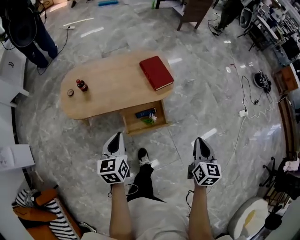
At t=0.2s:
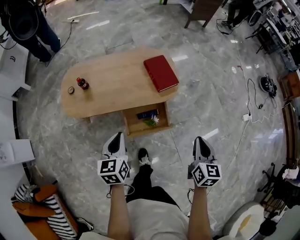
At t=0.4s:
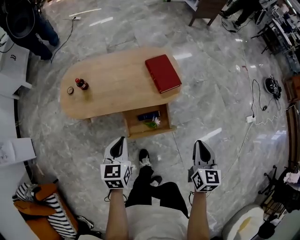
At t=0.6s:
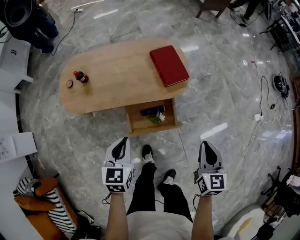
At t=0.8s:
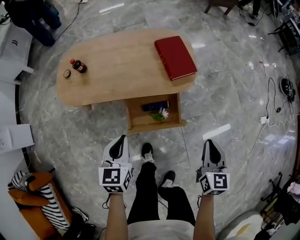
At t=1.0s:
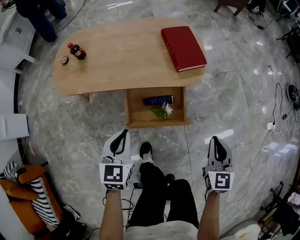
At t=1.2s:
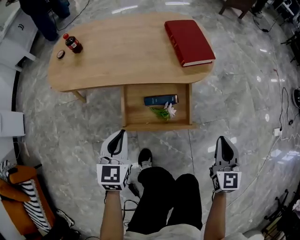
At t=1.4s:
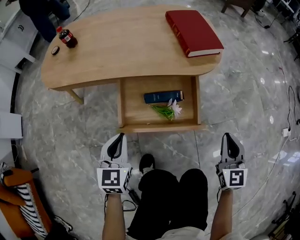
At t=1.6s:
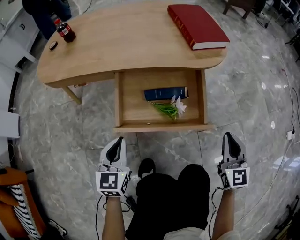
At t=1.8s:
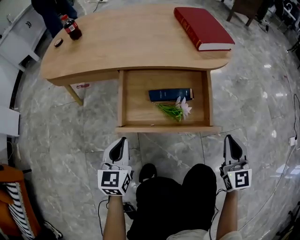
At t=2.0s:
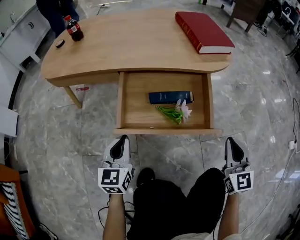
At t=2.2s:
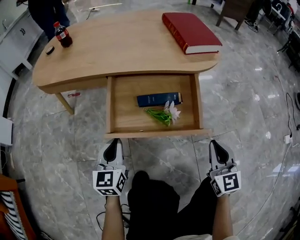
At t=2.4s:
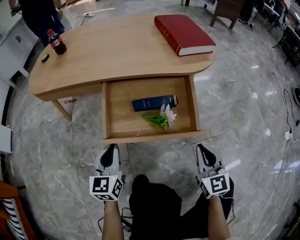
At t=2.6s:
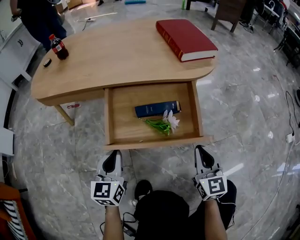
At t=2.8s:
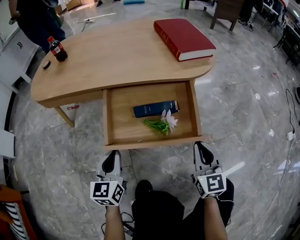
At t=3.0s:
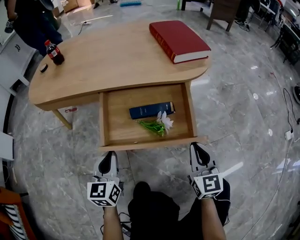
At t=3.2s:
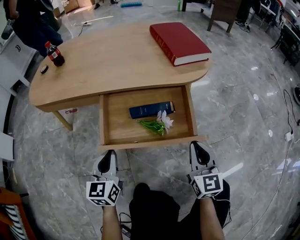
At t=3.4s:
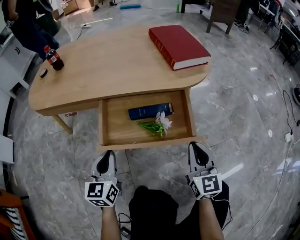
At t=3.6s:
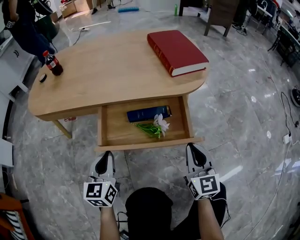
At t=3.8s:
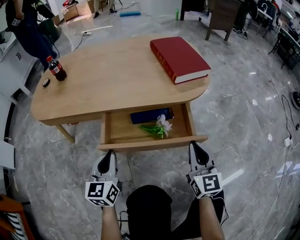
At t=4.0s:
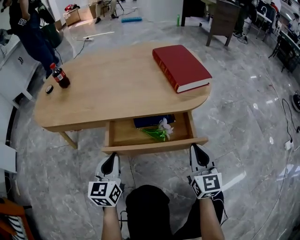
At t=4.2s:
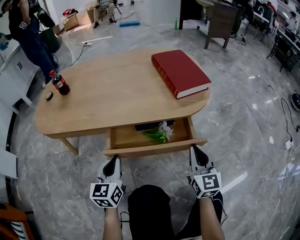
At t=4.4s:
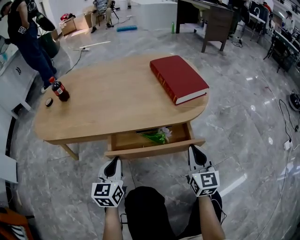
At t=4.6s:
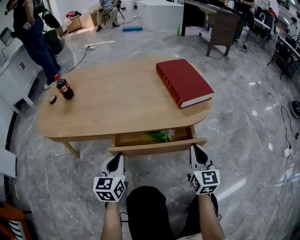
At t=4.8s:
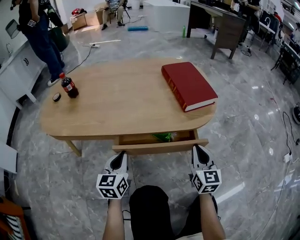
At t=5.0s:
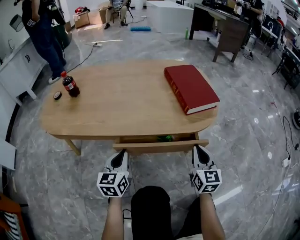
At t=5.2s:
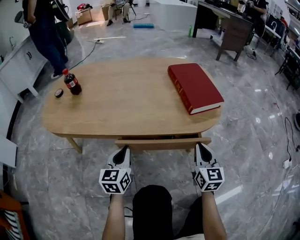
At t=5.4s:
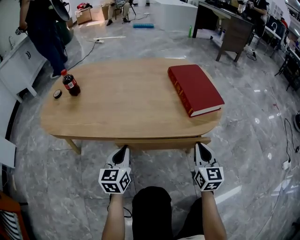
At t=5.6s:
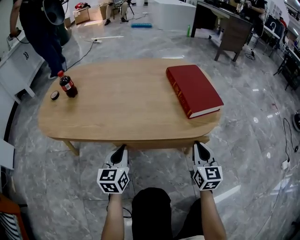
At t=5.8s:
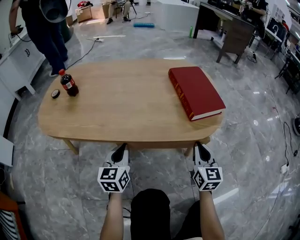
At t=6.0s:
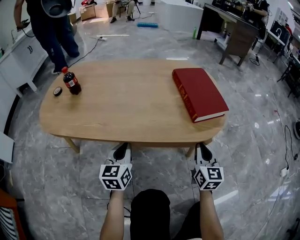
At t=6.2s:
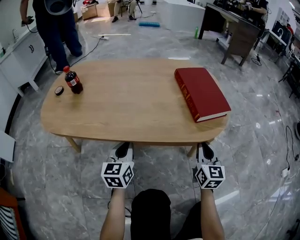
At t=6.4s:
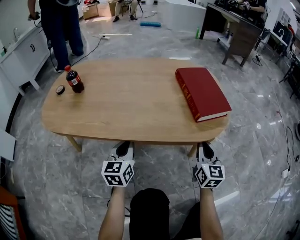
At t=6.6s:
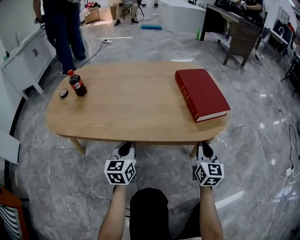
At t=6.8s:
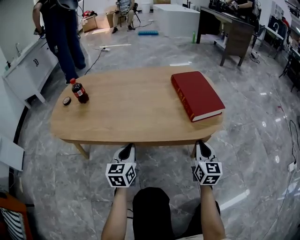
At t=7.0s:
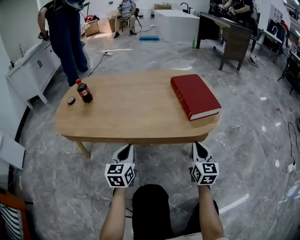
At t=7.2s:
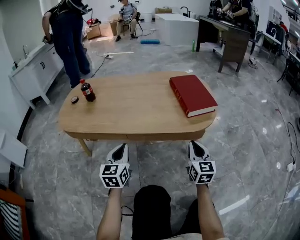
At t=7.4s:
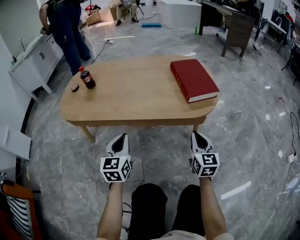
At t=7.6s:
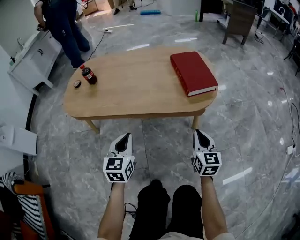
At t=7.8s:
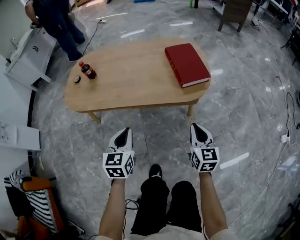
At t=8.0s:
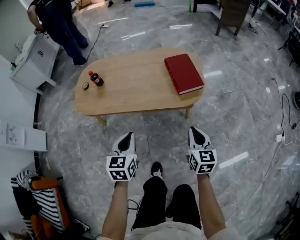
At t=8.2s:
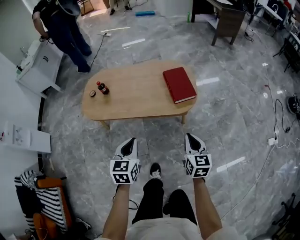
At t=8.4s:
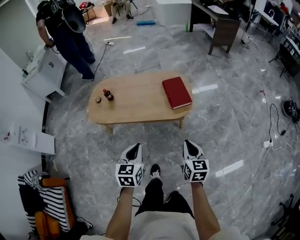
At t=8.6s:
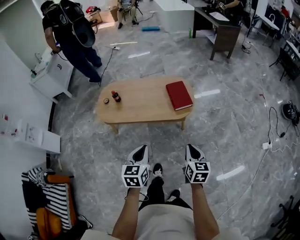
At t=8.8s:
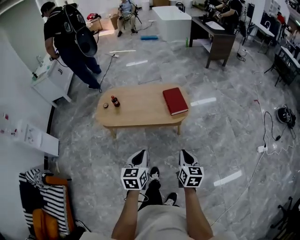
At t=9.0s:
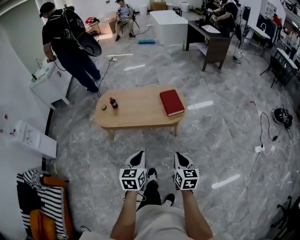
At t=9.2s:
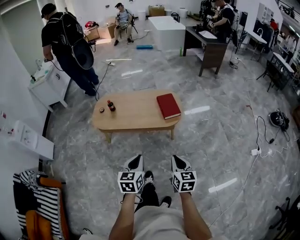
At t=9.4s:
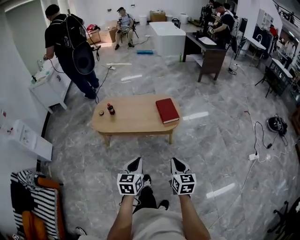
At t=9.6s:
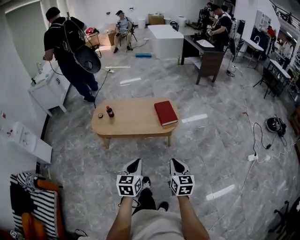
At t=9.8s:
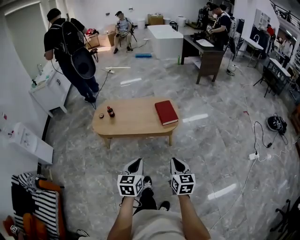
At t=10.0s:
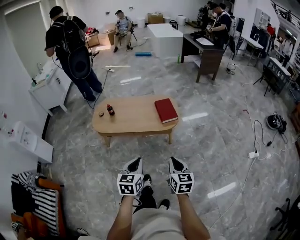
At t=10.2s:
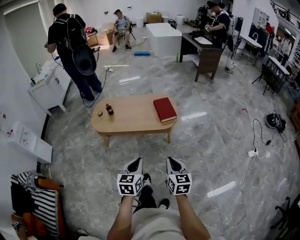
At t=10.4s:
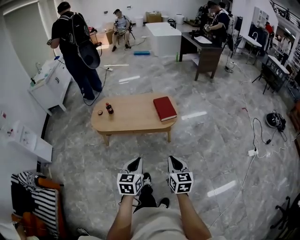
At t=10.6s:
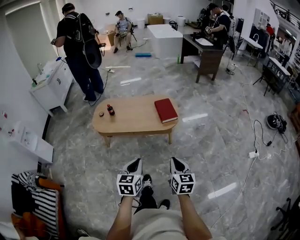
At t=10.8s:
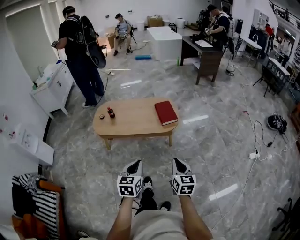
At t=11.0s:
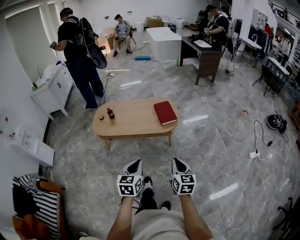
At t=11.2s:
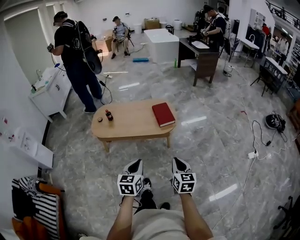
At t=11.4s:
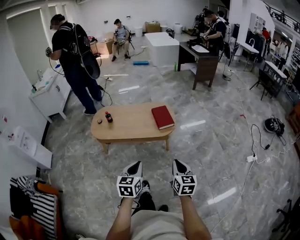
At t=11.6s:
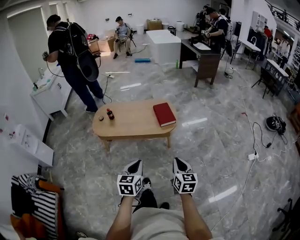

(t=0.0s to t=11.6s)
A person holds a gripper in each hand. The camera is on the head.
t=0.0s - t=1.4s: The grippers both shift downward by some 40 cm. The right gripper turns by some 30 degrees; the left gripper changes its angle by approximately 20 degrees.
t=1.4s - t=2.8s: The left gripper heads downward, covering about 10 cm. The right gripper heads downward and to the left, covering approximately 15 cm.
t=2.8s - t=4.4s: The left gripper moves forward, approximately 10 cm, while the right gripper moves forward and upward, some 10 cm.
t=4.4s - t=5.8s: Both grippers move forward, approximately 10 cm.
t=5.8s - t=7.2s: The left gripper moves backward and upward, approximately 10 cm. The right gripper ends up some 5 cm from where it was.
t=7.2s - t=8.8s: Both grippers travel together upward and backward, roughly 60 cm. The right gripper rotates roughly 20 degrees.
t=8.8s - t=10.2s: Both grippers move backward, about 10 cm.
t=10.2s - t=11.6s: The right gripper is displaced to the right by about 5 cm.

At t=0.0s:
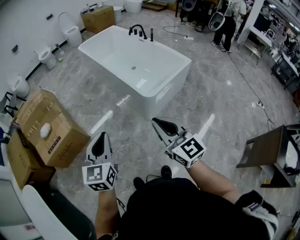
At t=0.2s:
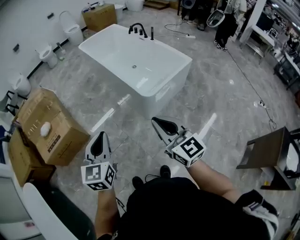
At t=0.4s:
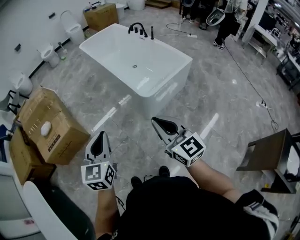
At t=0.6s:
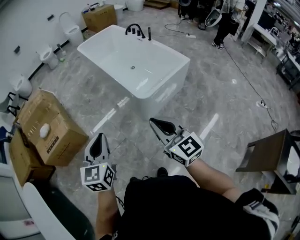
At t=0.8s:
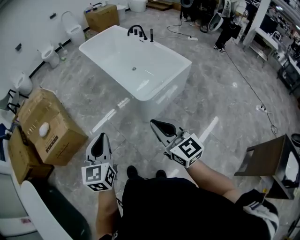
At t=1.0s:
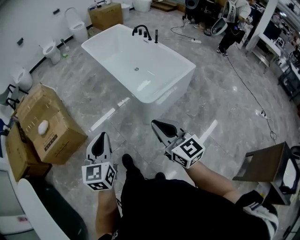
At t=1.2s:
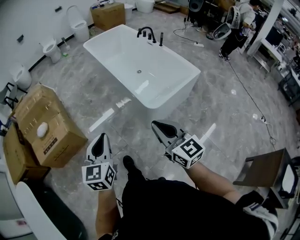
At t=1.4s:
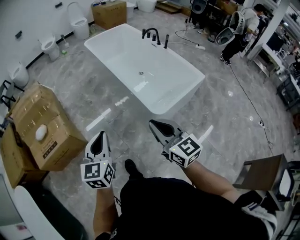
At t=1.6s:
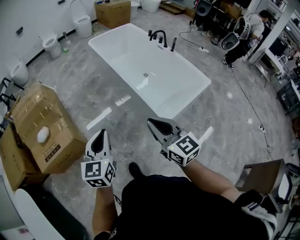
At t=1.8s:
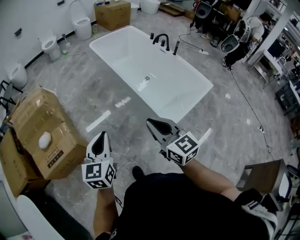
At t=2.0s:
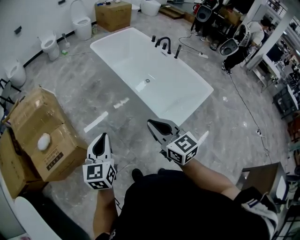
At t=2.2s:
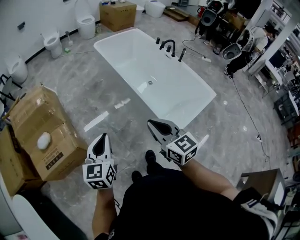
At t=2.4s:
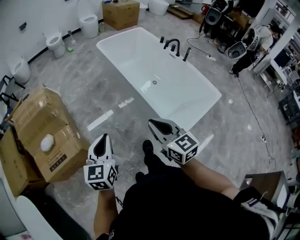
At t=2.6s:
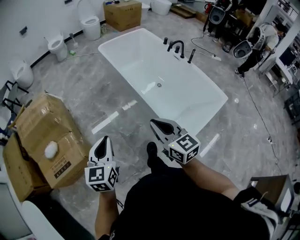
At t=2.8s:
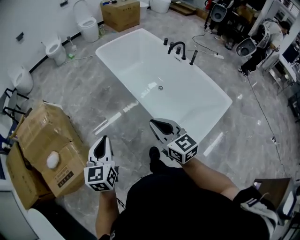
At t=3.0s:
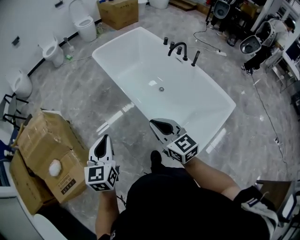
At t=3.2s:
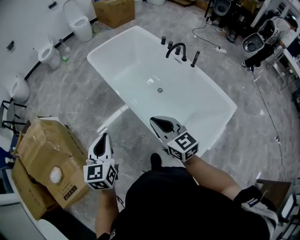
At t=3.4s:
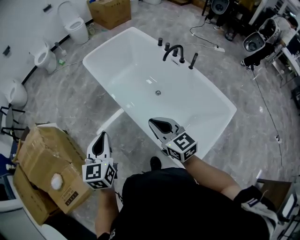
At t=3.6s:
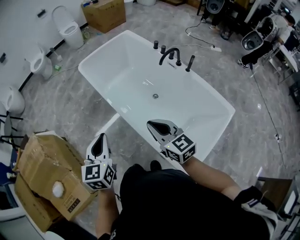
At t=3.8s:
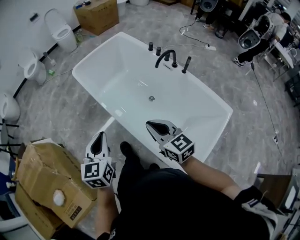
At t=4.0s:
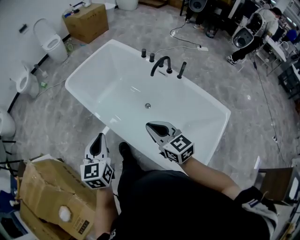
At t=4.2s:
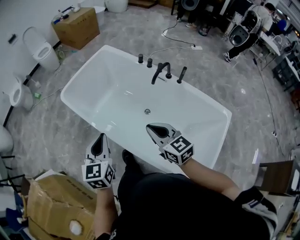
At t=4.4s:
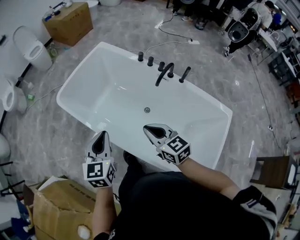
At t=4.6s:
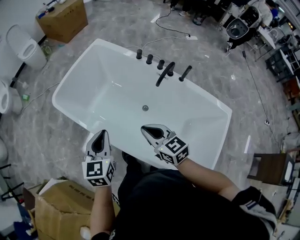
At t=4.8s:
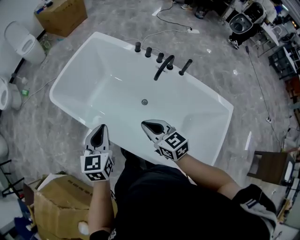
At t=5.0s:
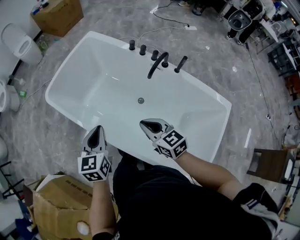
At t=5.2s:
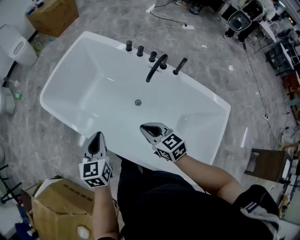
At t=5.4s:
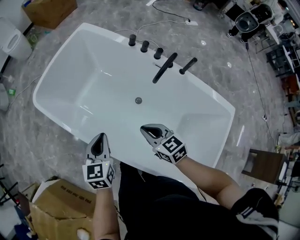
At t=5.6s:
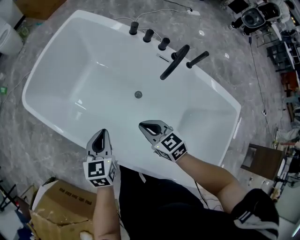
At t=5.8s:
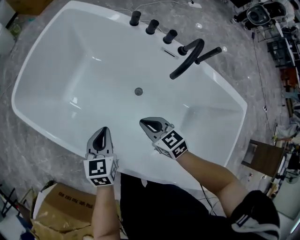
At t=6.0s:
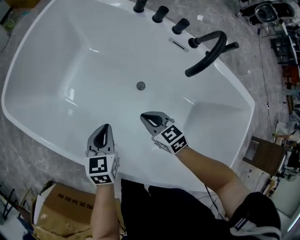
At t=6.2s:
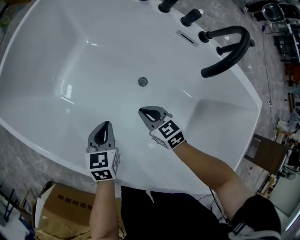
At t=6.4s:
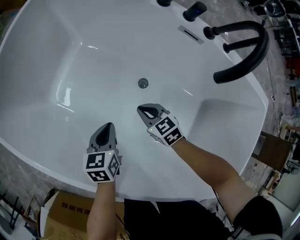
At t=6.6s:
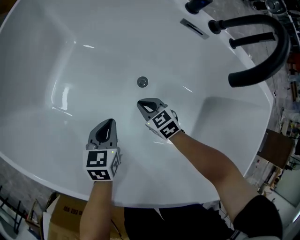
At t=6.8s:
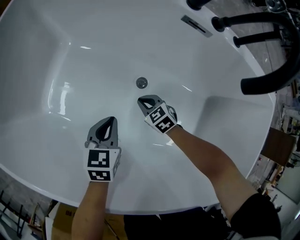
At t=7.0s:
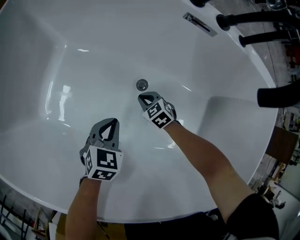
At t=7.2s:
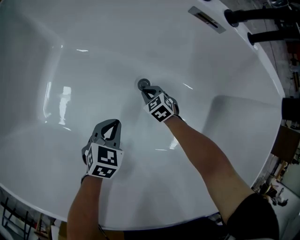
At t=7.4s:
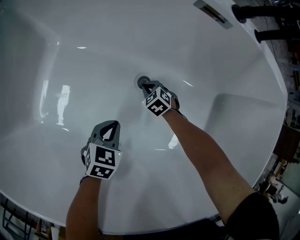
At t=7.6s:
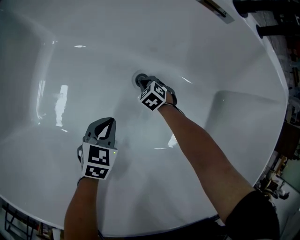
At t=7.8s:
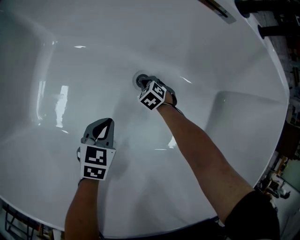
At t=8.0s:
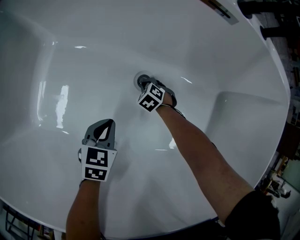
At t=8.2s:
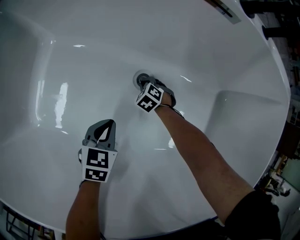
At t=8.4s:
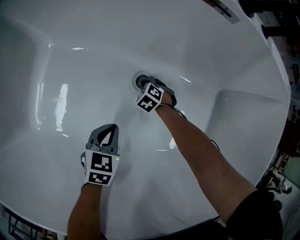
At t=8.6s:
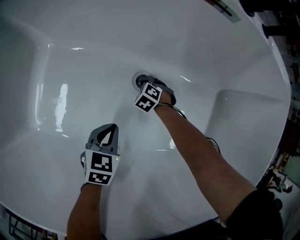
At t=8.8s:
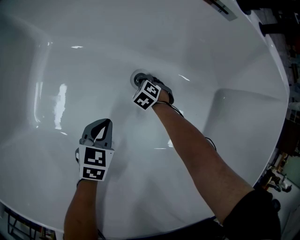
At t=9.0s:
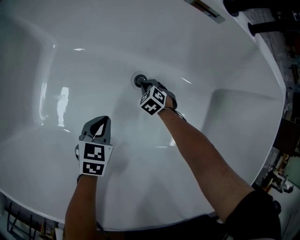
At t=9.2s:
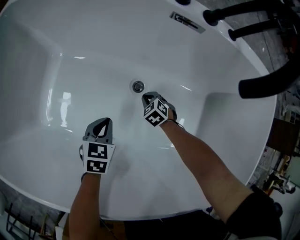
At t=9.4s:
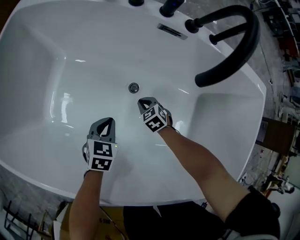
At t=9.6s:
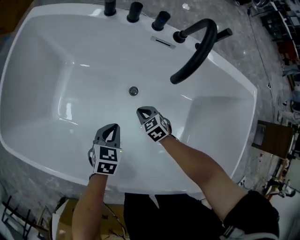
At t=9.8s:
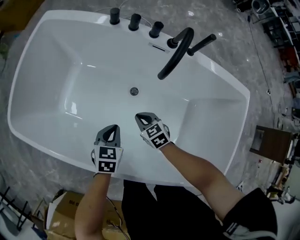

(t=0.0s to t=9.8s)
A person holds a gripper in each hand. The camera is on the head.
t=0.0s - t=1.4s: Both grippers move forward, roughly 20 cm.
t=1.4s - t=2.8s: Both grippers move forward, approximately 40 cm.
t=2.8s - t=4.2s: The pair of grippers is taken forward, approximately 50 cm.
t=4.2s - t=5.6s: The two grippers go approximately 35 cm downward and forward. The right gripper changes its angle by about 20 degrees.
t=5.6s - t=7.0s: The two grippers go approximately 50 cm downward. The right gripper turns by about 20 degrees. The left gripper turns by roughly 40 degrees.
t=7.0s - t=8.4s: Both grippers travel together downward, about 10 cm. The right gripper turns by some 20 degrees.
t=8.4s - t=9.8s: Both grippers move upward, roughly 35 cm. The right gripper turns by about 40 degrees.

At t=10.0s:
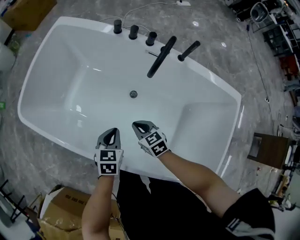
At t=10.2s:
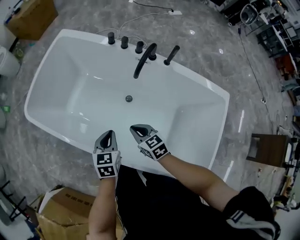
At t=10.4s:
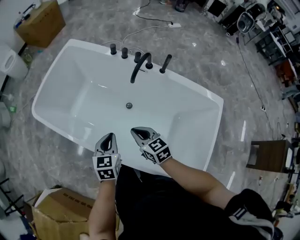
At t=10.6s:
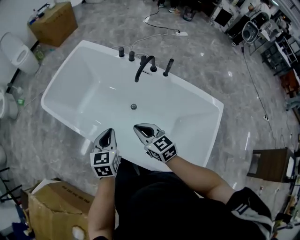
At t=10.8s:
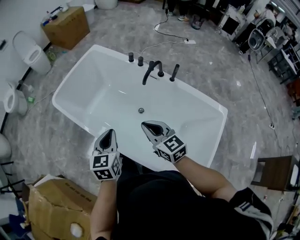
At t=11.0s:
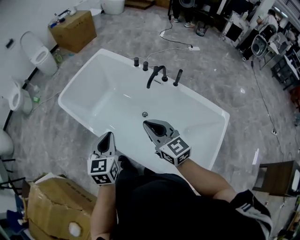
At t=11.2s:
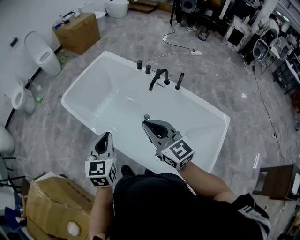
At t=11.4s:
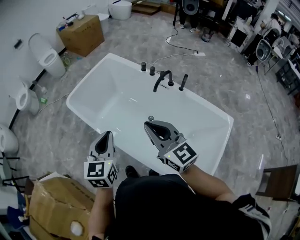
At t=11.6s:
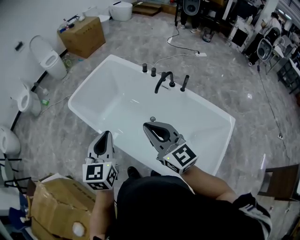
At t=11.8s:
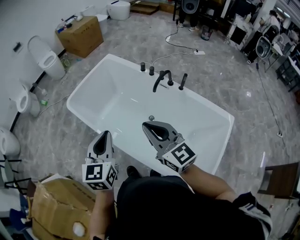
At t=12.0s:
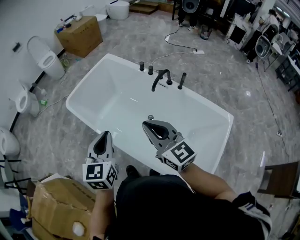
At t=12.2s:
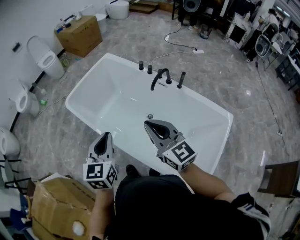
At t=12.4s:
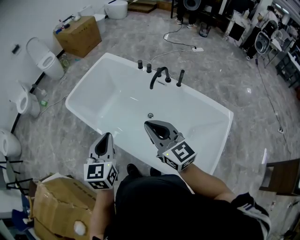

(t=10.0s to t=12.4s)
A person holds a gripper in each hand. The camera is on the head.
t=10.0s - t=11.2s: Both grippers travel together upward and backward, about 50 cm. The right gripper angles its fingers upward, by some 40 degrees. The left gripper changes its angle by some 30 degrees.
t=11.2s - t=12.4s: The grippers make only small movements.
